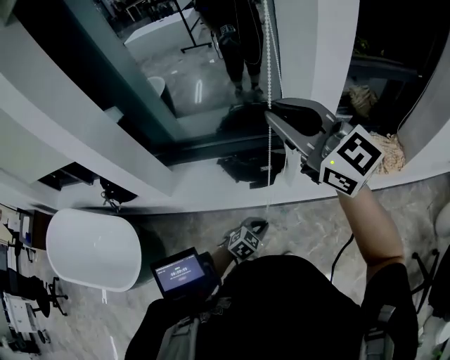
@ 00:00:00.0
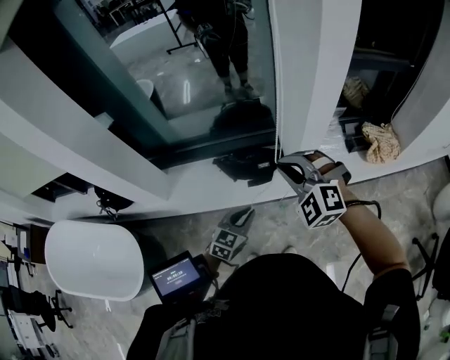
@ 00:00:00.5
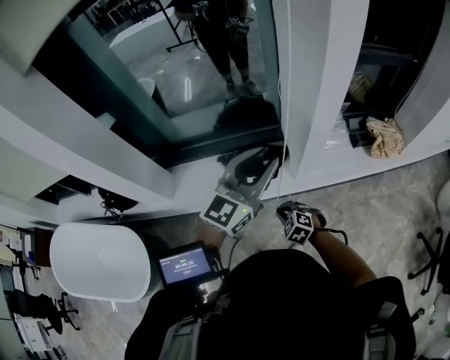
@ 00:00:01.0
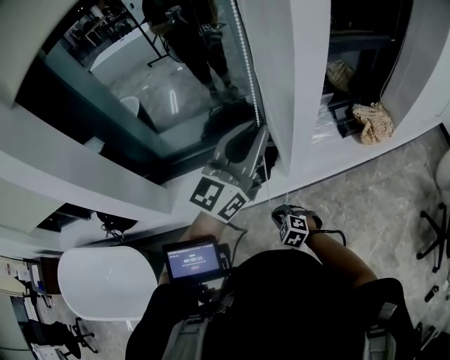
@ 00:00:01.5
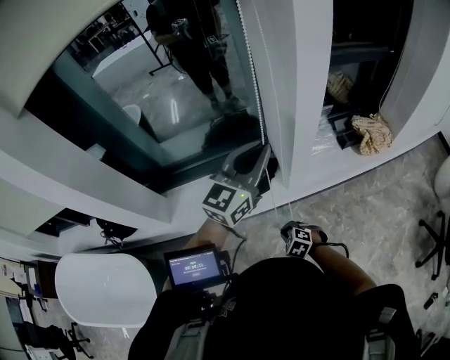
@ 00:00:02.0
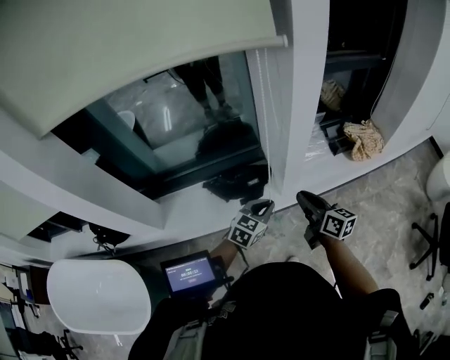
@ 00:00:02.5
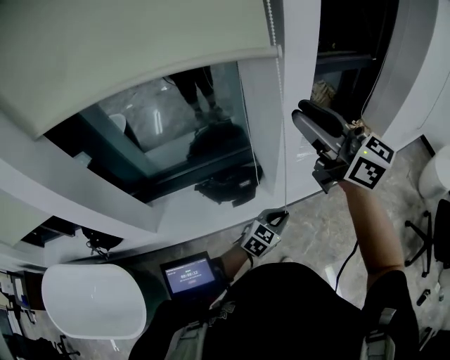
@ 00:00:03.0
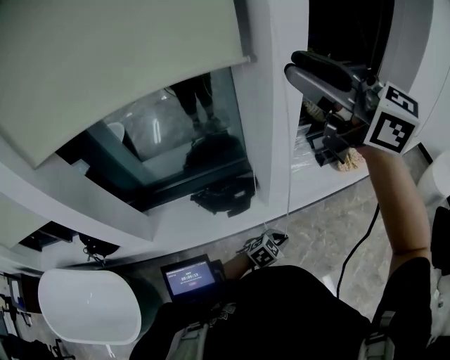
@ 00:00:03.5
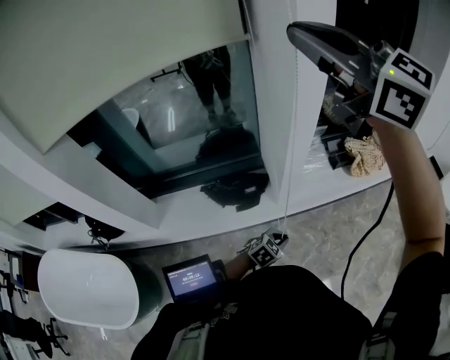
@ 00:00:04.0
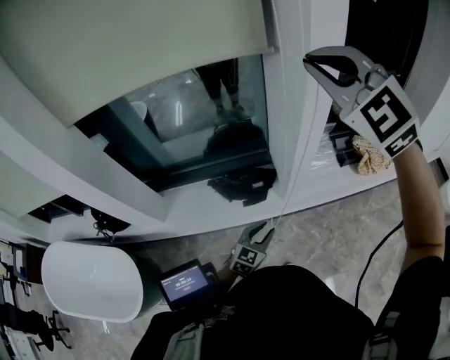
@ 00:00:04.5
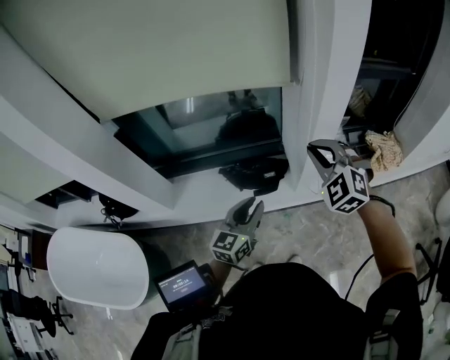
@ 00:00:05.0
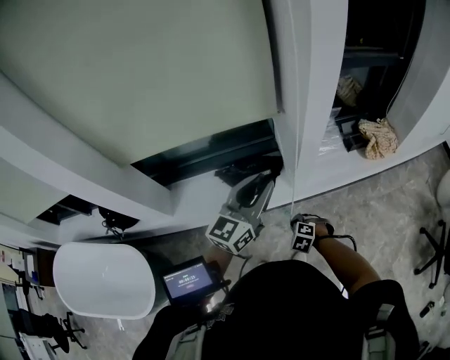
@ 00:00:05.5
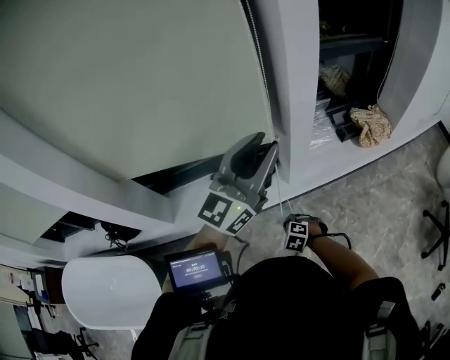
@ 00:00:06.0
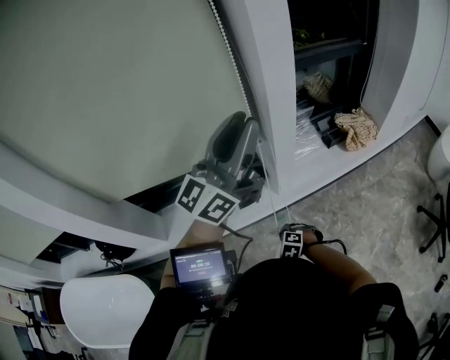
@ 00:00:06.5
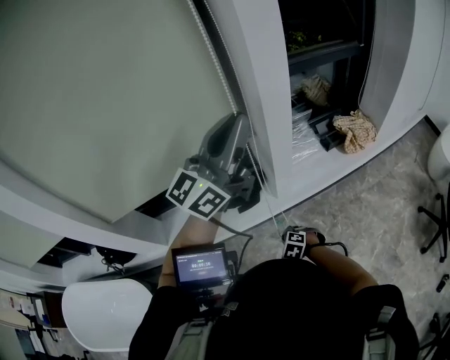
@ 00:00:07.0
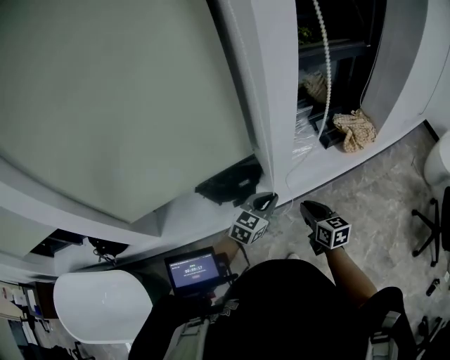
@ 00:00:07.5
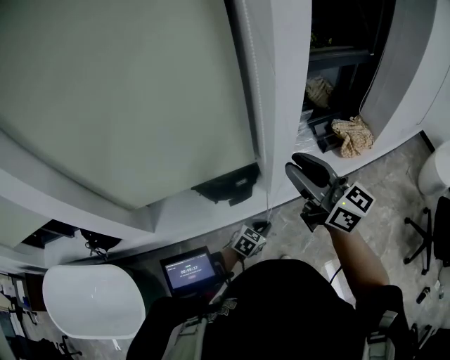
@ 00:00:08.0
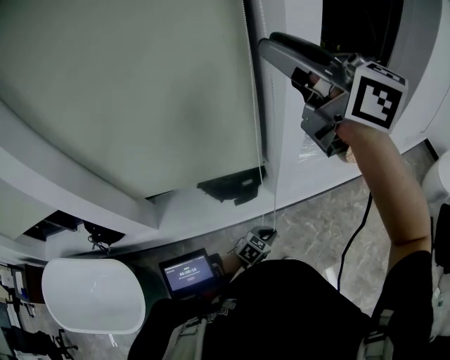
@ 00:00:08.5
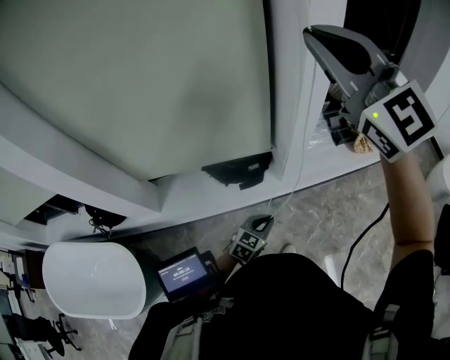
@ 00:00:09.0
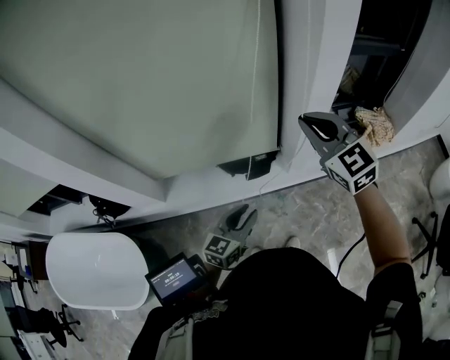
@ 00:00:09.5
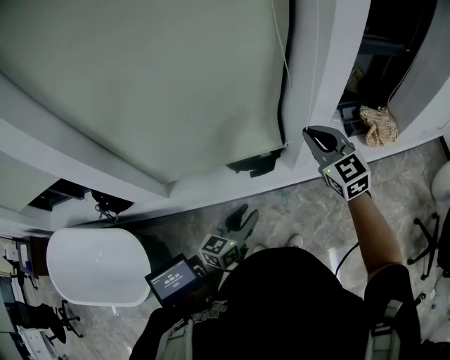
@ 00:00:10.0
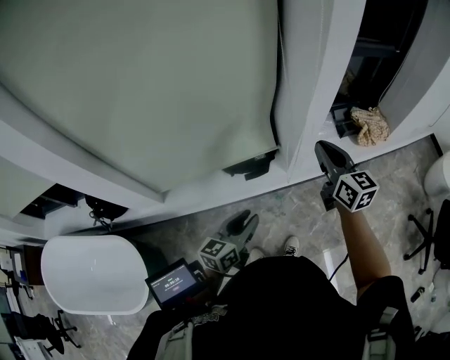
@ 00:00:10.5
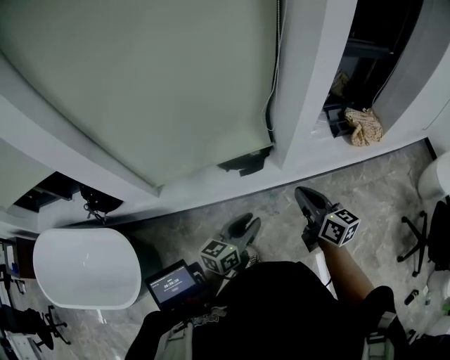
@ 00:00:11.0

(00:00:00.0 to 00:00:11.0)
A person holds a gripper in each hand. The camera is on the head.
00:00:00.0 - 00:00:02.0: The right gripper goes some 50 cm downward, and points its fingers roughly 70 degrees further downward, while the left gripper heads upward and forward, covering approximately 40 cm, angles its fingers upward, by about 50 degrees, and opens, then closes again.
00:00:02.0 - 00:00:03.5: The left gripper shifts roughly 40 cm downward and backward, and points its fingers some 50 degrees further downward; the right gripper moves upward, about 70 cm, tips its fingers upward by approximately 80 degrees, and opens up.
00:00:03.5 - 00:00:05.5: The right gripper travels downward by approximately 70 cm, tilts its fingers about 80 degrees downward, and closes up, while the left gripper heads upward and to the left, covering roughly 30 cm, tilts its fingers approximately 50 degrees upward, and opens up.
00:00:05.5 - 00:00:07.5: The right gripper travels upward, to the right and forward by about 20 cm, and tips its fingers upward by roughly 50 degrees. Meanwhile the left gripper shifts about 20 cm downward and to the right, turns by about 30 degrees, and closes its fingers.
00:00:07.5 - 00:00:09.0: The left gripper is displaced backward, downward and to the left by about 15 cm, while the right gripper goes roughly 50 cm upward, twists about 60 degrees counterclockwise, seen from behind, and opens and closes again.
00:00:09.0 - 00:00:11.0: The right gripper moves downward, some 40 cm, and rotates around the line of its fingers by approximately 60 degrees, clockwise from behind. Meanwhile the left gripper is displaced upward, to the left and backward by roughly 15 cm, swivels about 40 degrees, and opens up.

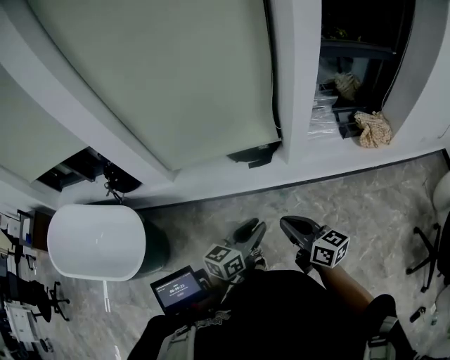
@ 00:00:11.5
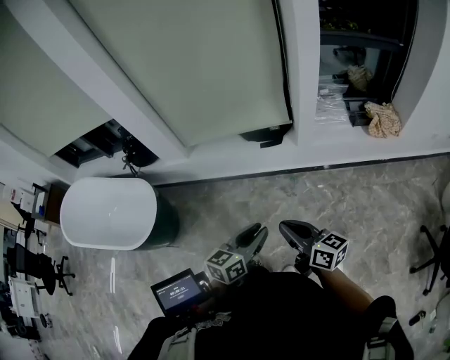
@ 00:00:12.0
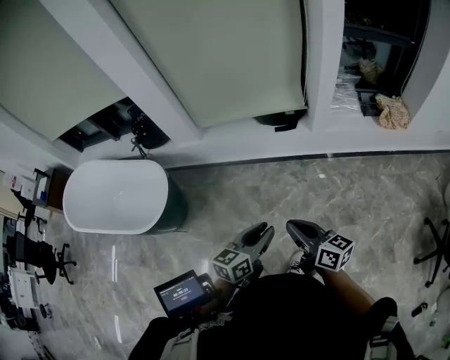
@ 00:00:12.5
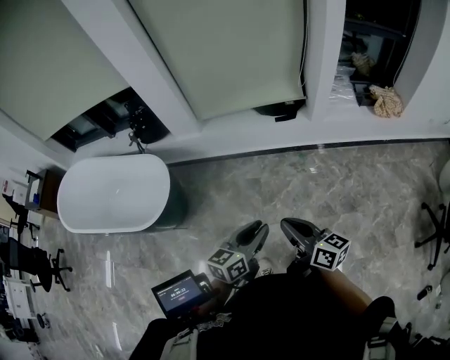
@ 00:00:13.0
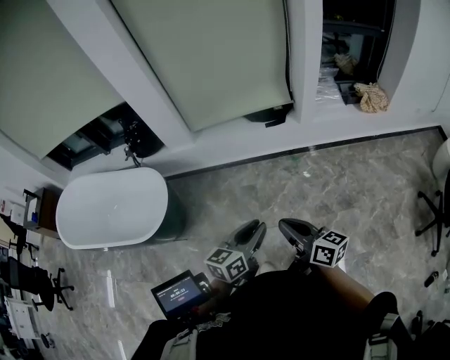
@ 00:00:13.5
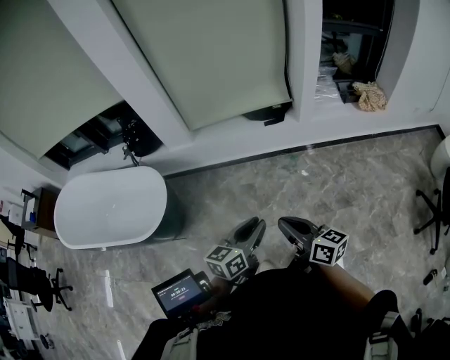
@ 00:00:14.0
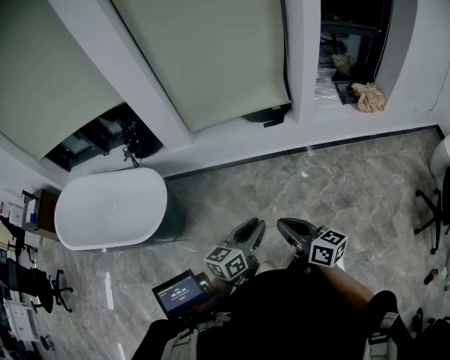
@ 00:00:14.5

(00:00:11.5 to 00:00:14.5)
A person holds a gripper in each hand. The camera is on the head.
00:00:11.5 - 00:00:13.0: The grippers both shift backward and to the left by about 30 cm.
00:00:13.0 - 00:00:14.5: The grippers make only small movements.

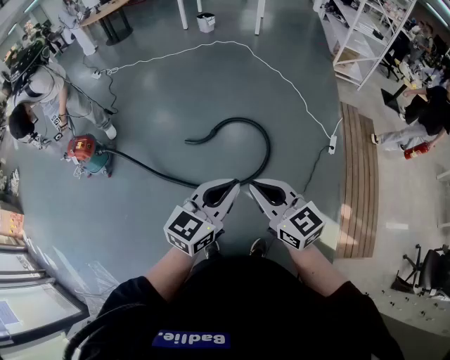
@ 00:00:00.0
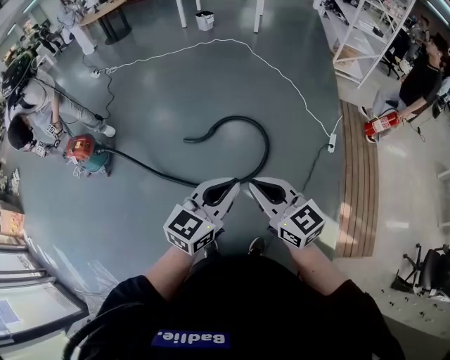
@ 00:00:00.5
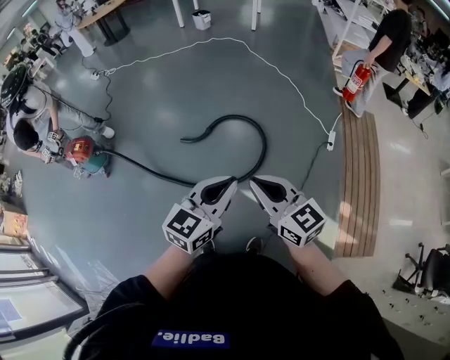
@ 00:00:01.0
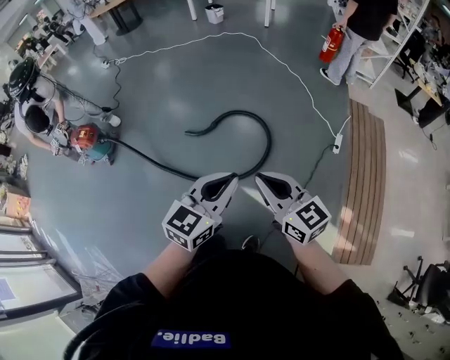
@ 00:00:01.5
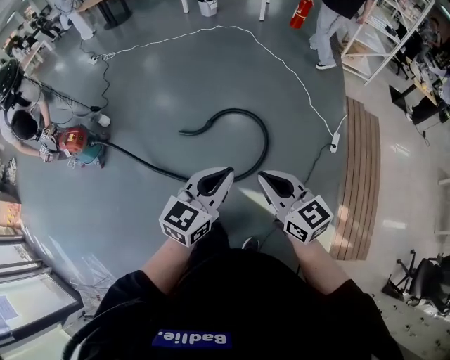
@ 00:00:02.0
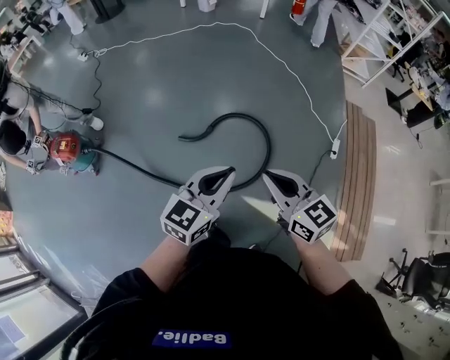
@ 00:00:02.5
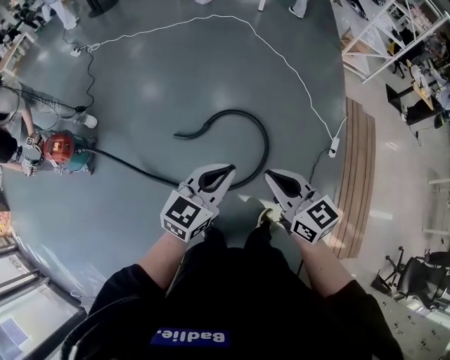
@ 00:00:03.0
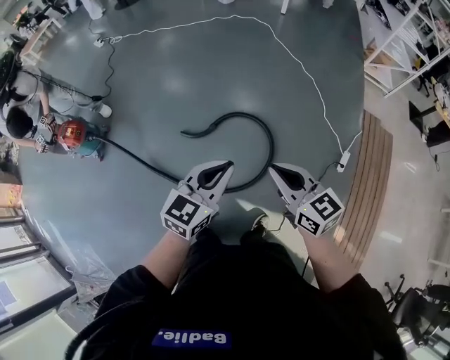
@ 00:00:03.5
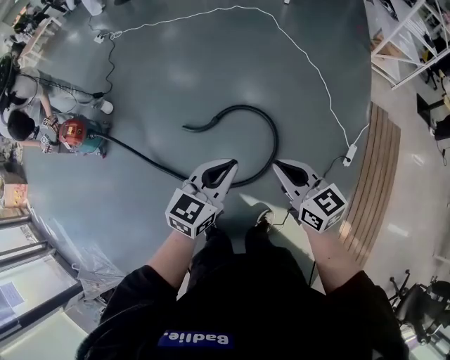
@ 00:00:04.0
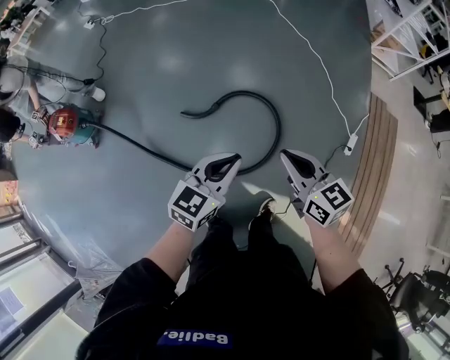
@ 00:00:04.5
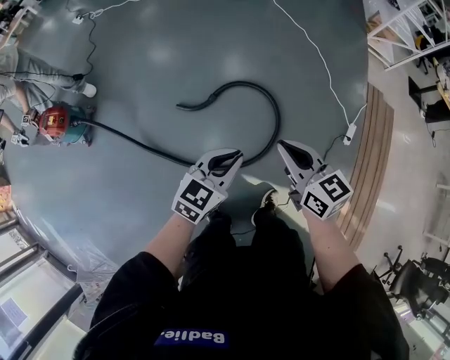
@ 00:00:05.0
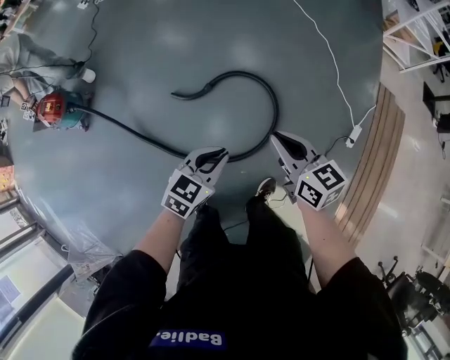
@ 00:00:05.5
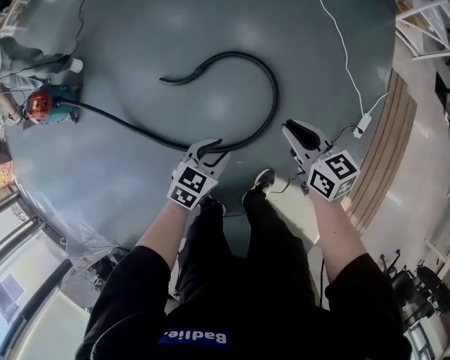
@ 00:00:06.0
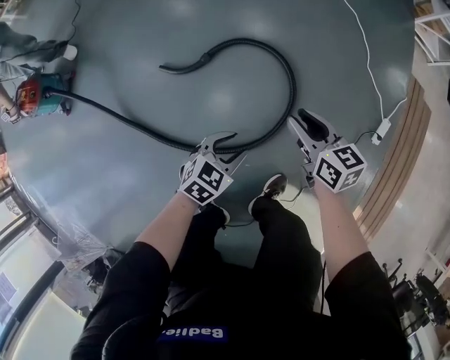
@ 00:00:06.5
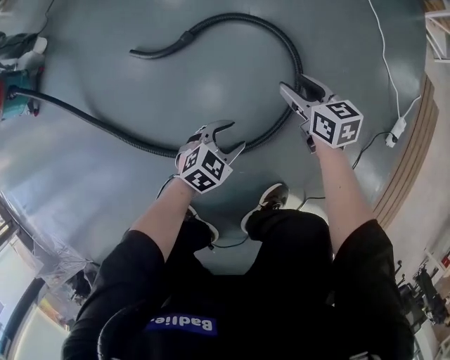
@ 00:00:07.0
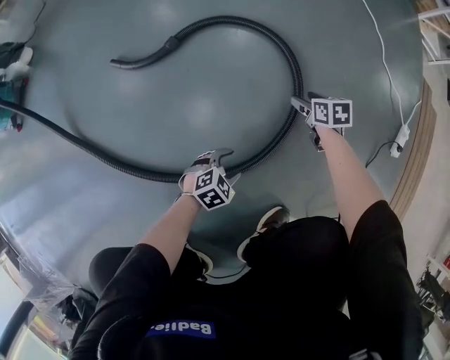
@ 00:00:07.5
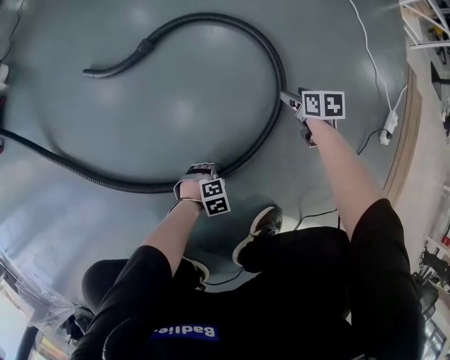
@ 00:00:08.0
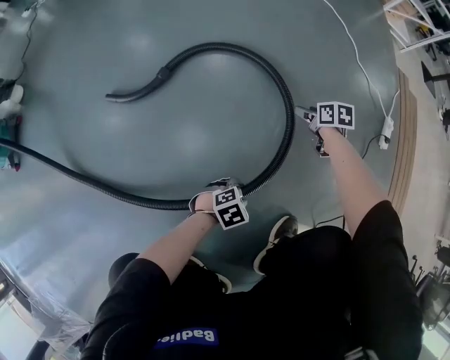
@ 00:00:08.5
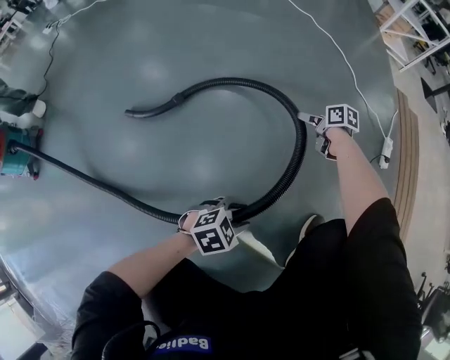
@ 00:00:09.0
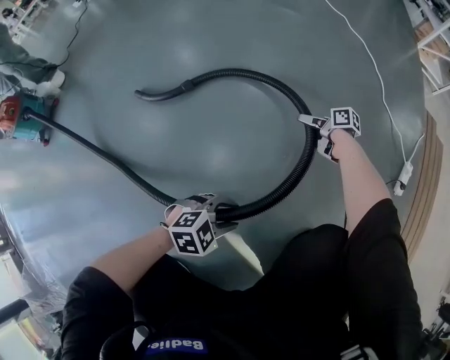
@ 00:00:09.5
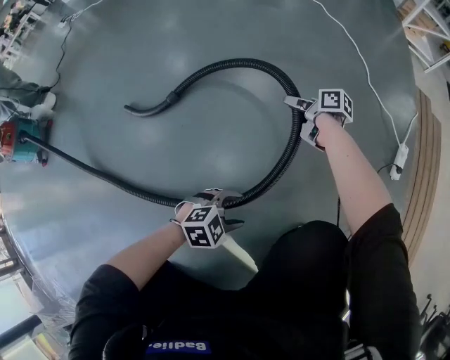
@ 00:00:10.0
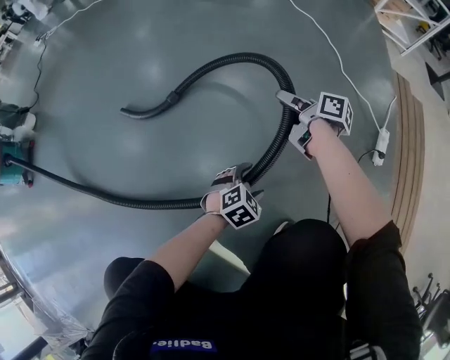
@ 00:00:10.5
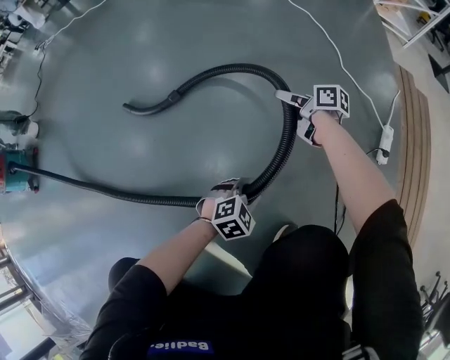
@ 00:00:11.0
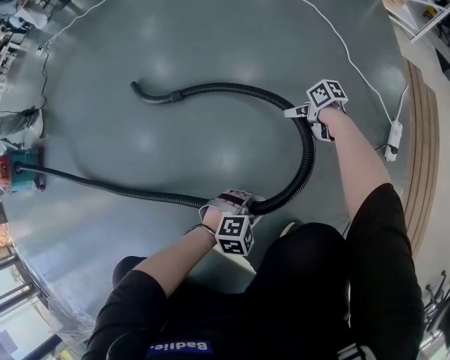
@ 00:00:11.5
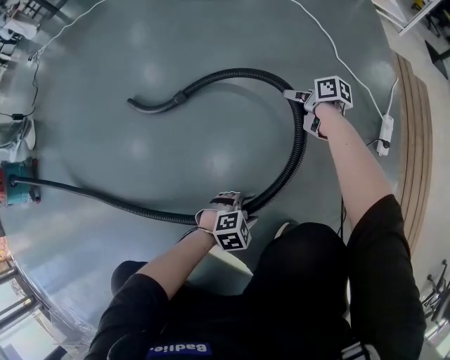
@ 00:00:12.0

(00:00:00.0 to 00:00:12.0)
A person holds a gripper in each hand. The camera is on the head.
00:00:00.0 - 00:00:02.0: The left gripper goes some 10 cm forward, while the right gripper is displaced forward and to the right by roughly 15 cm.
00:00:02.0 - 00:00:04.0: Both grippers move forward, some 20 cm.
00:00:04.0 - 00:00:06.0: The left gripper heads downward, covering some 30 cm, swivels roughly 30 degrees, and opens. The right gripper is displaced downward and forward by roughly 25 cm.
00:00:06.0 - 00:00:08.0: The two grippers go approximately 70 cm downward. The right gripper tilts its fingers about 30 degrees downward, and opens up. Meanwhile the left gripper swivels approximately 50 degrees, and opens.
00:00:08.0 - 00:00:10.0: The right gripper swings up and down, some 10 cm each way, with 2 reversals, and swivels approximately 50 degrees. The left gripper goes about 20 cm upward.
00:00:10.0 - 00:00:12.0: The right gripper moves up and down over approximately 15 cm, changing direction 2 times, while the left gripper ends up some 15 cm from where it was, and closes, then reopens.
